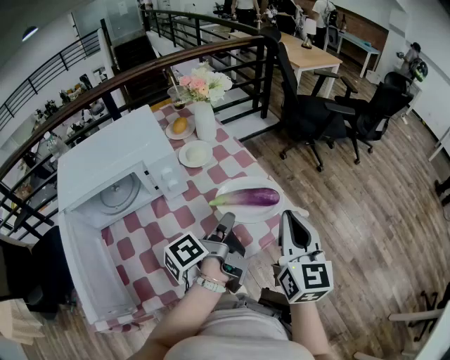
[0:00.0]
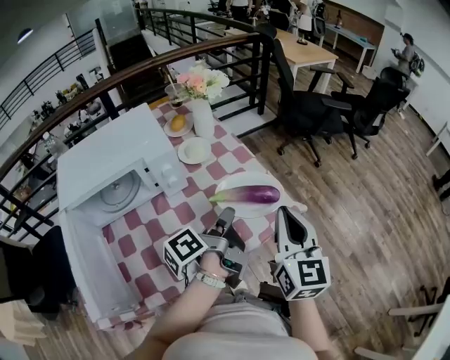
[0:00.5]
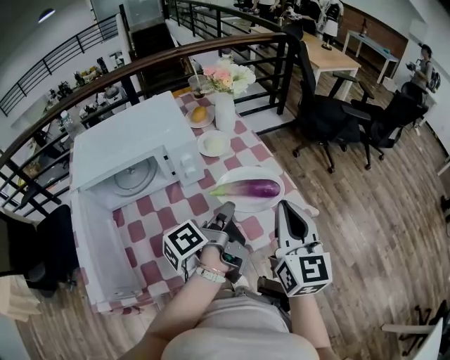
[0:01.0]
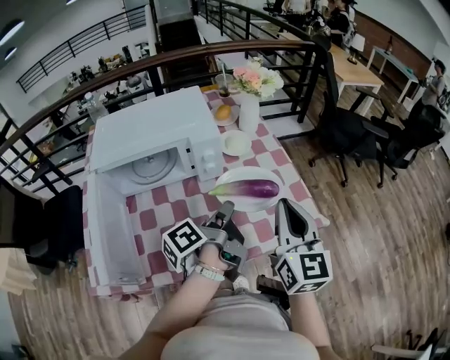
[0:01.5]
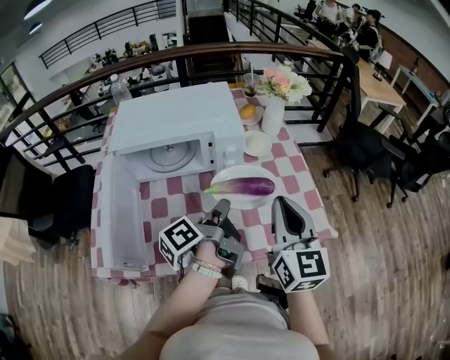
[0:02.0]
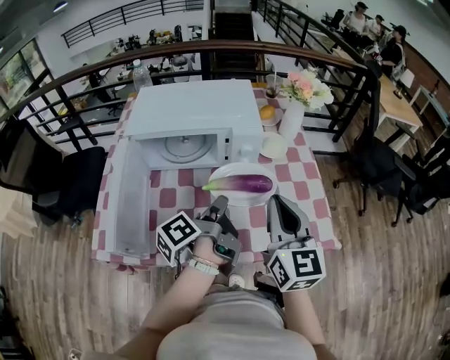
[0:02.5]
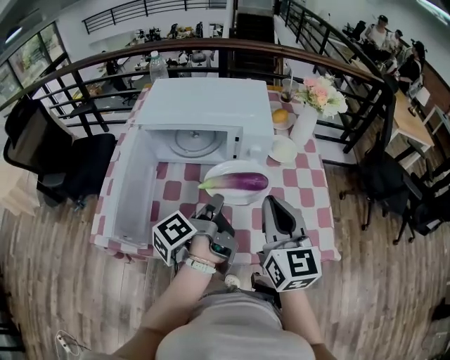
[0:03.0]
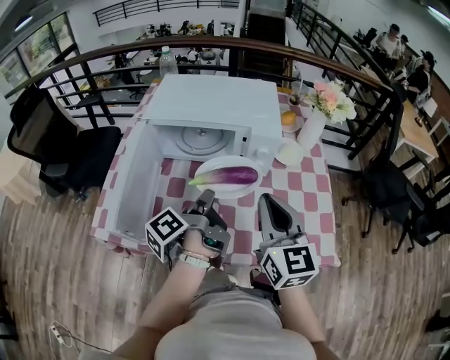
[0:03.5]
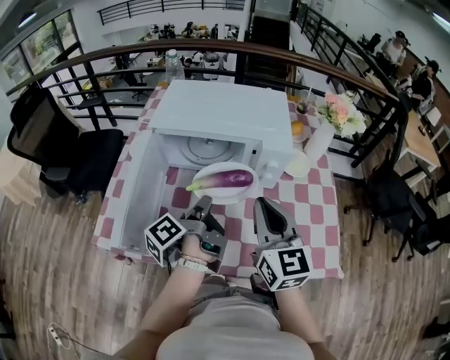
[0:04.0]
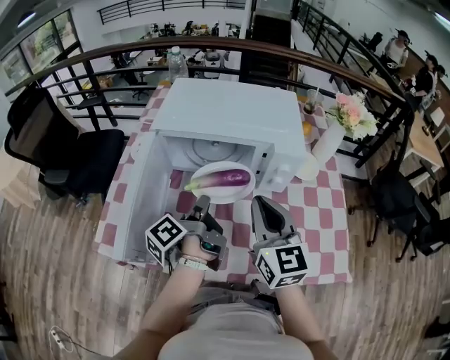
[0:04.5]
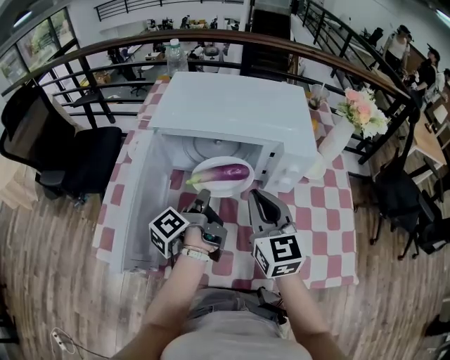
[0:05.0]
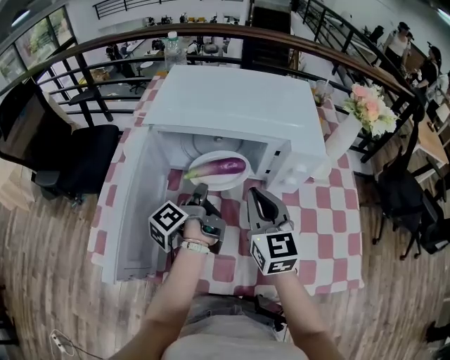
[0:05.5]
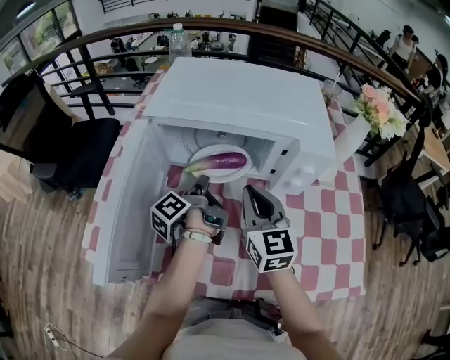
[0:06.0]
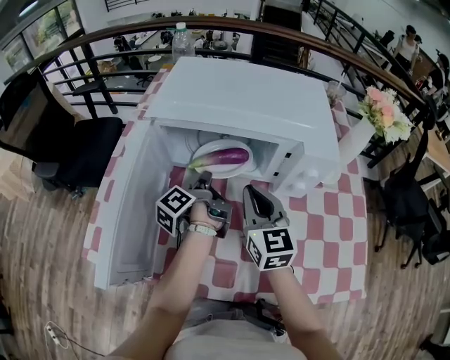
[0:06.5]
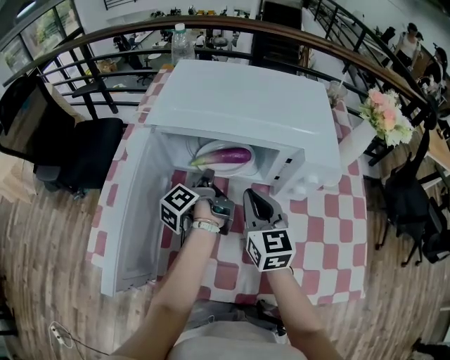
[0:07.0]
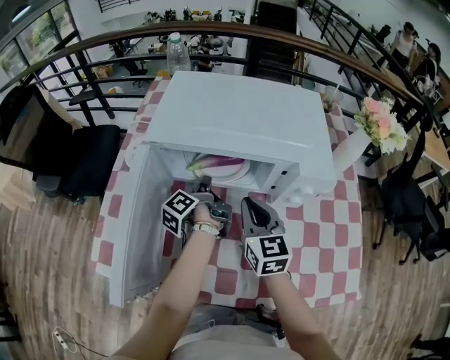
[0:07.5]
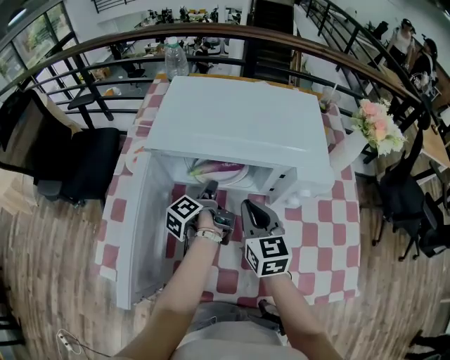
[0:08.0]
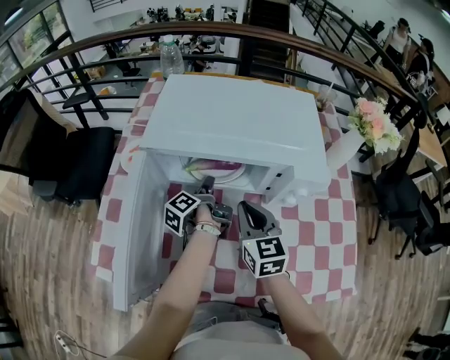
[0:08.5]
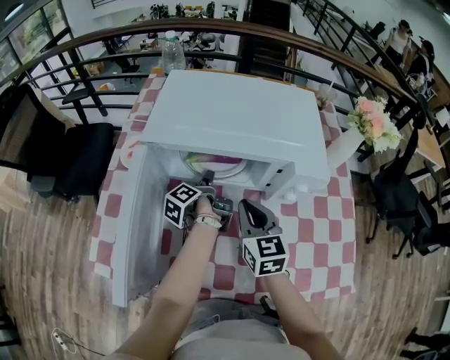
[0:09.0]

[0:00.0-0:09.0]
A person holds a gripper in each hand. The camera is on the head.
0:00.0 to 0:02.0: The right gripper ends up approximately 15 cm from where it was, and rotates approximately 30 degrees.
0:02.0 to 0:04.5: The right gripper ends up approximately 20 cm from where it was, and turns by roughly 20 degrees.
0:04.5 to 0:07.0: The right gripper travels downward by some 15 cm.

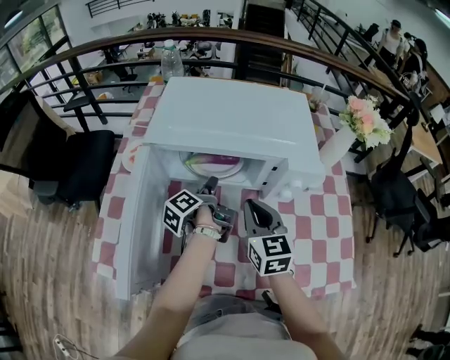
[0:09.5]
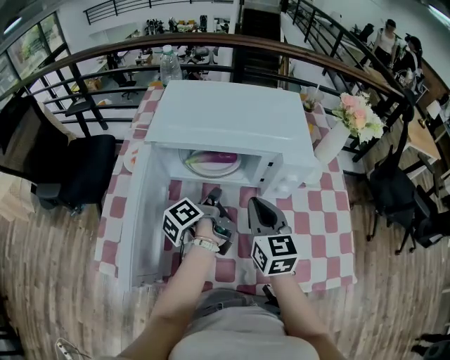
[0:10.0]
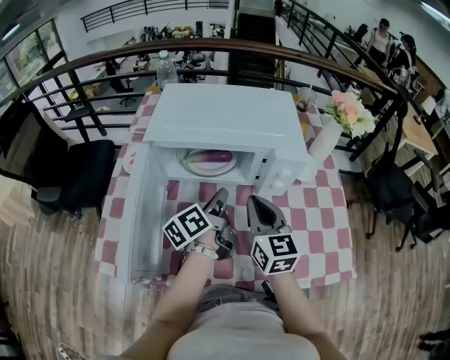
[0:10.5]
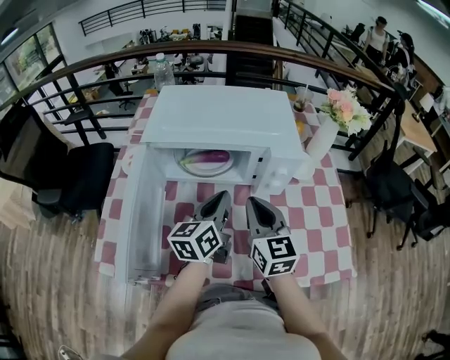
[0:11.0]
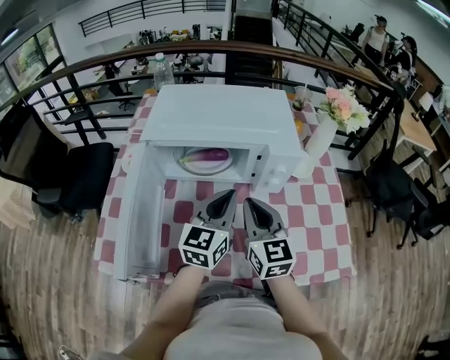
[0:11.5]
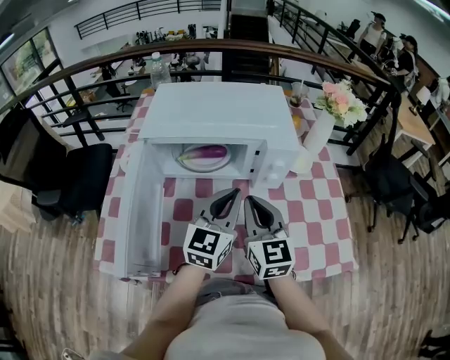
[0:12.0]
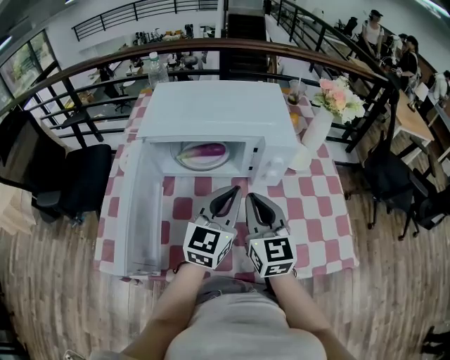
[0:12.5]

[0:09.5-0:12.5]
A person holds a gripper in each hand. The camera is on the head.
0:09.5 to 0:11.0: The right gripper ends up about 5 cm from where it was.

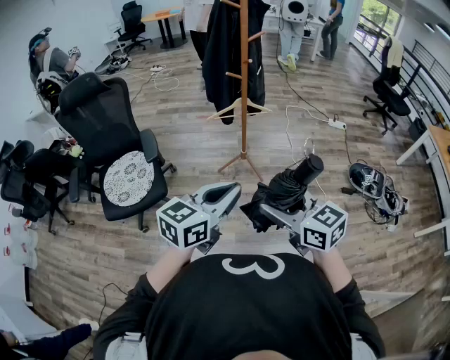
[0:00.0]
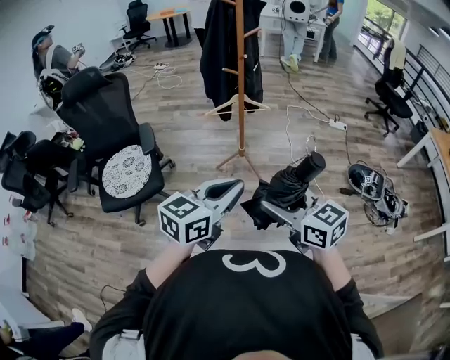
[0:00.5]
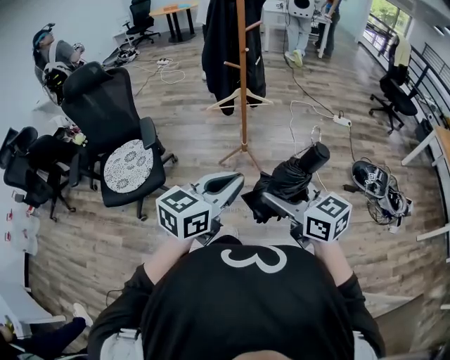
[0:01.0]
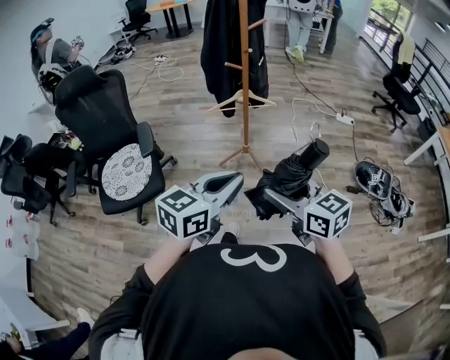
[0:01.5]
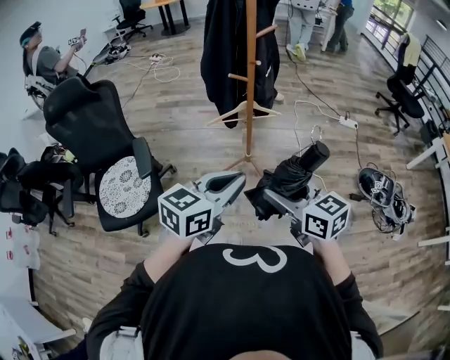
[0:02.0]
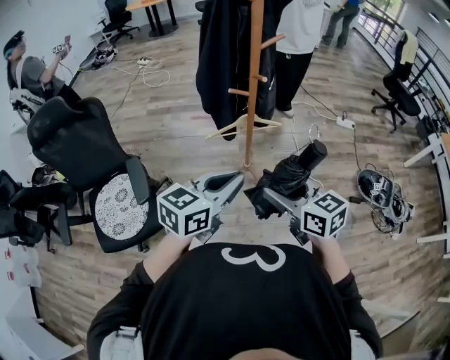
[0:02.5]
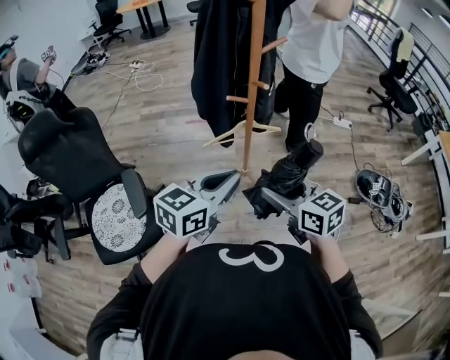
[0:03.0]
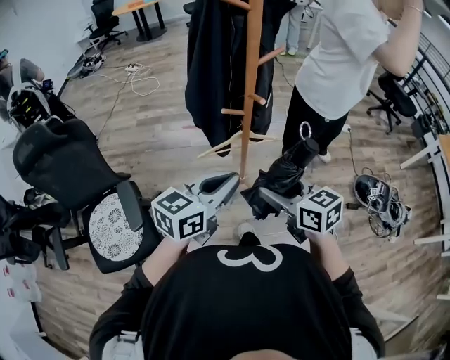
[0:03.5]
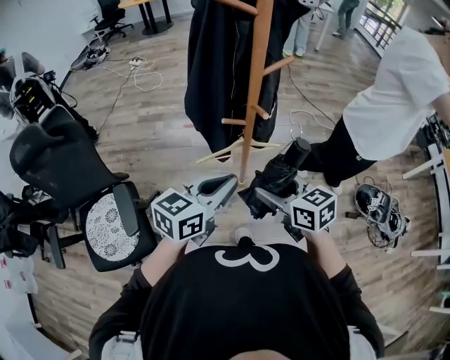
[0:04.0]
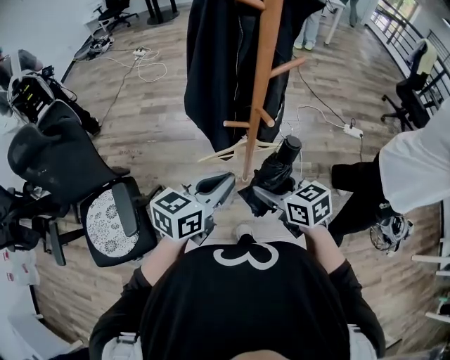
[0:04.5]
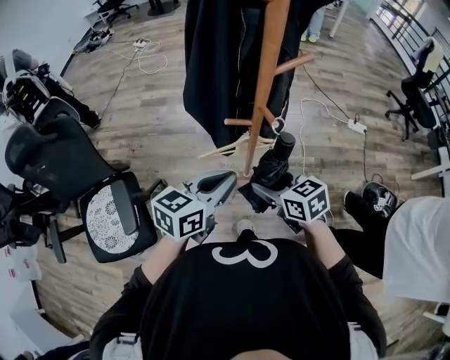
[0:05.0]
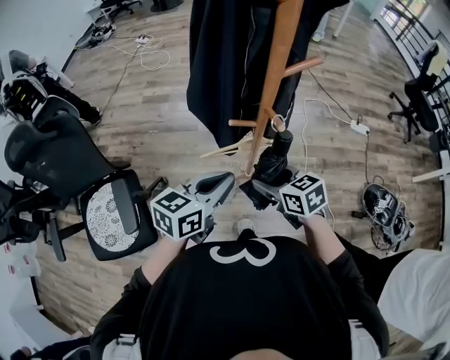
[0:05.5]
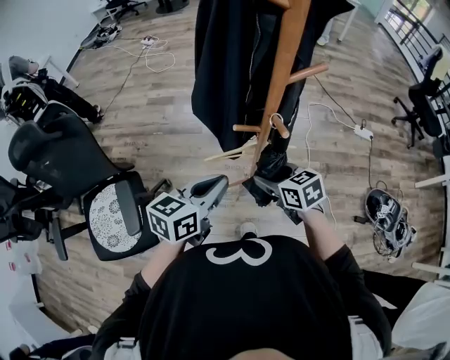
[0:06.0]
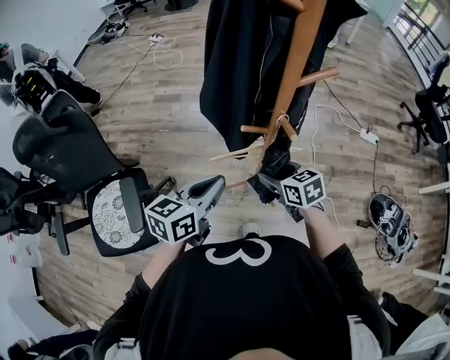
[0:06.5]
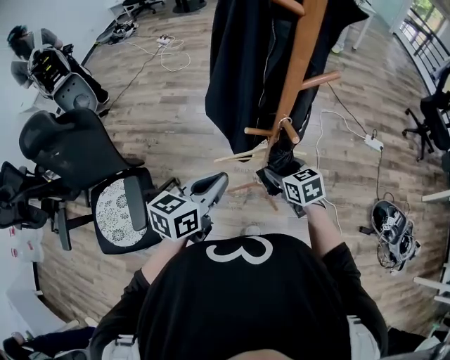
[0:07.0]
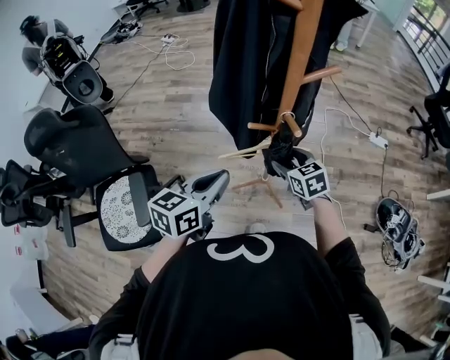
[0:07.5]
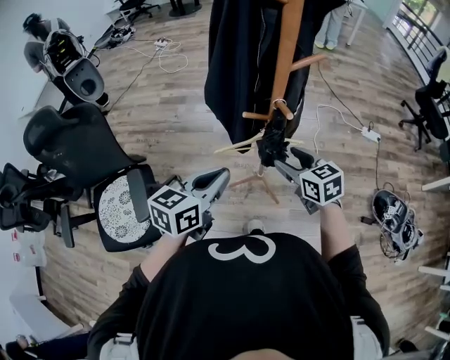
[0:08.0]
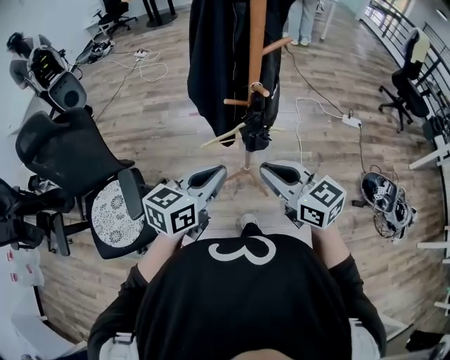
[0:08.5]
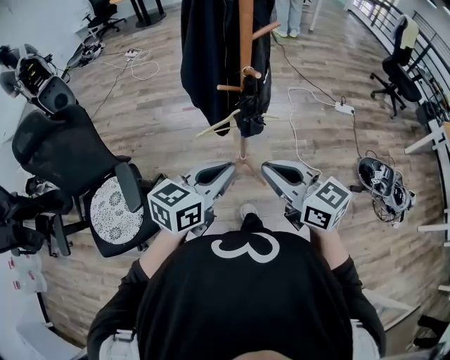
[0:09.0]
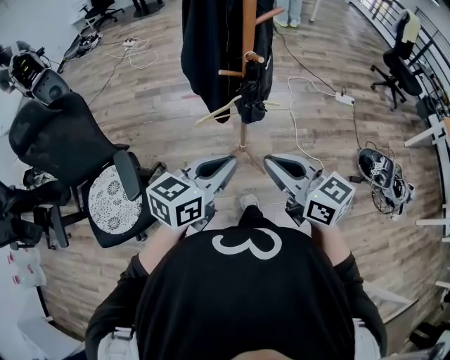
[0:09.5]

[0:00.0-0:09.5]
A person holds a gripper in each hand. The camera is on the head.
0:00.0 to 0:02.0: Both grippers move forward, approximately 20 cm.
0:02.0 to 0:04.0: Both grippers travel together forward, roughly 30 cm.
0:04.0 to 0:05.5: Both grippers move forward and downward, approximately 10 cm.
0:05.5 to 0:07.5: The left gripper ends up approximately 5 cm from where it was; the right gripper is displaced forward by about 10 cm.
0:07.5 to 0:09.5: The left gripper is displaced backward by some 20 cm, while the right gripper heads backward and upward, covering roughly 35 cm, tilts its fingers roughly 30 degrees upward, and closes.

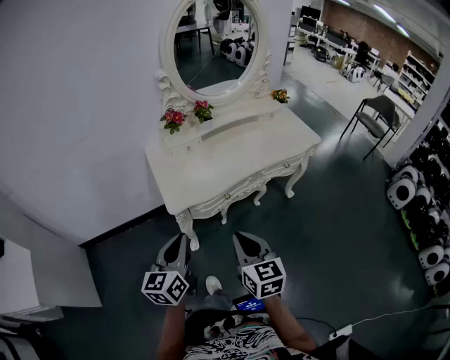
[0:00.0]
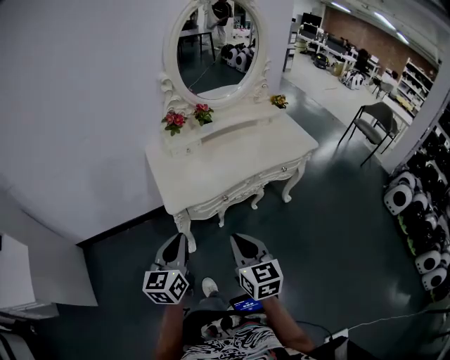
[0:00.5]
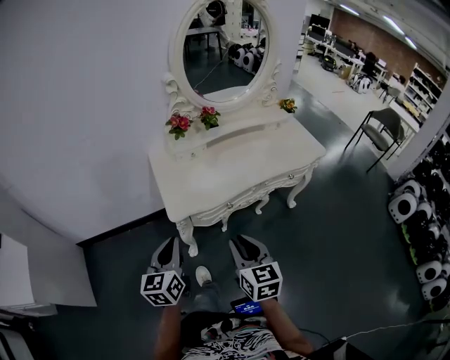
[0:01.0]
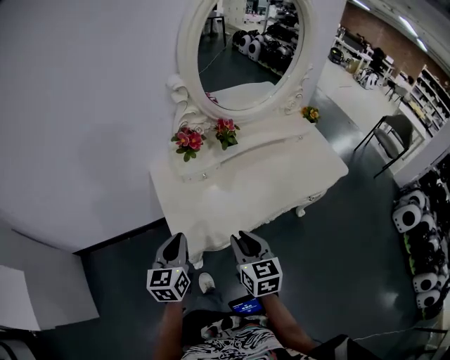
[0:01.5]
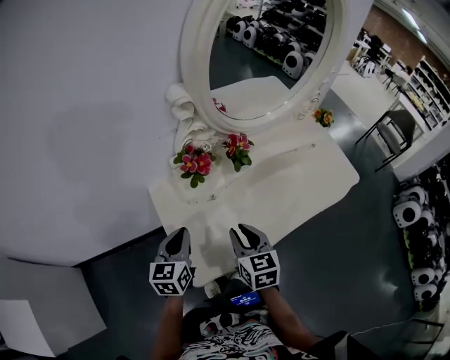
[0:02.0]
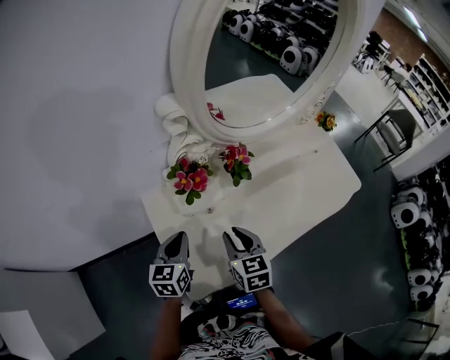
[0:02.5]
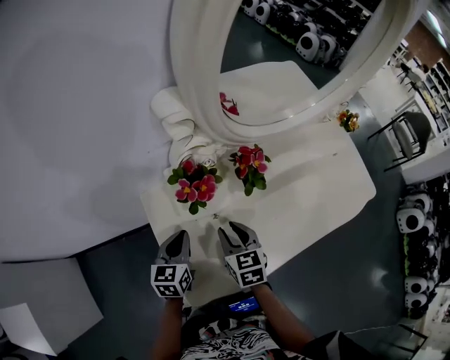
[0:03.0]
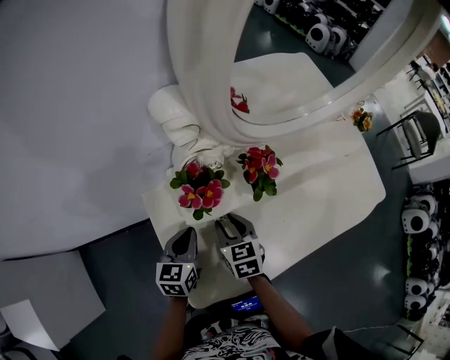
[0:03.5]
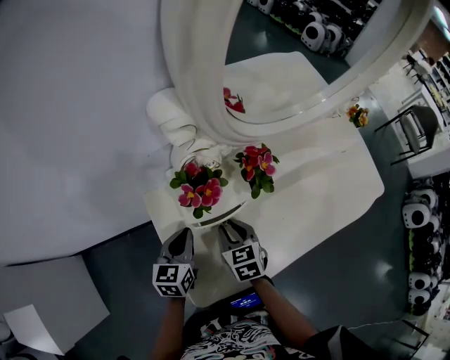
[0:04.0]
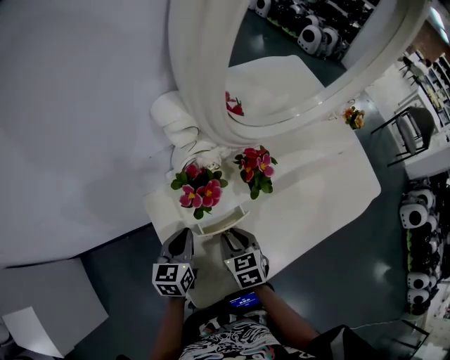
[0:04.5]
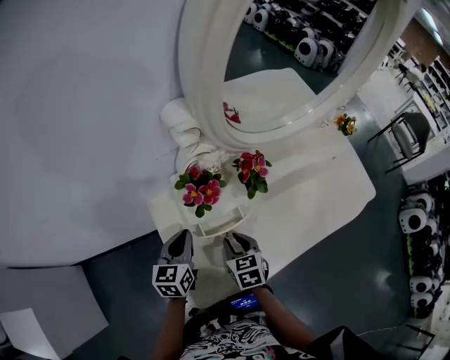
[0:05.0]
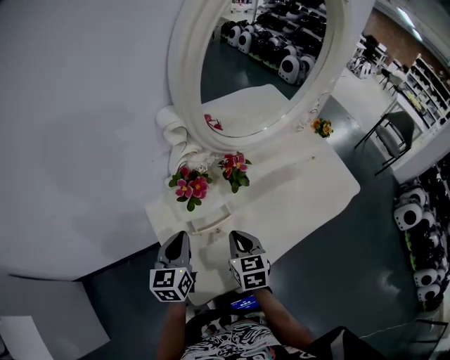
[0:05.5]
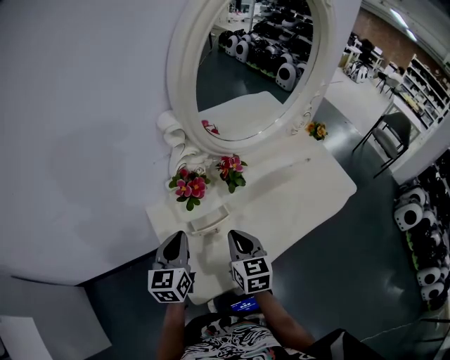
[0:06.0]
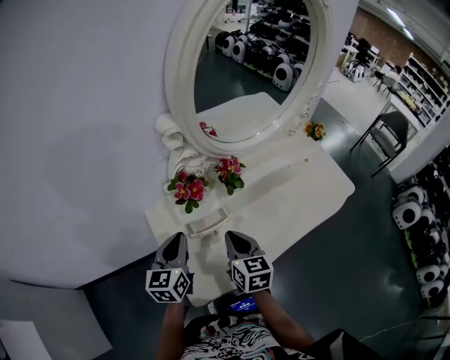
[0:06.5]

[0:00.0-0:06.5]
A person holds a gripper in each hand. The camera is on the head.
0:00.0 to 0:02.0: Both grippers travel together forward, some 35 cm. The right gripper opens.
0:02.0 to 0:04.5: The left gripper moves forward and downward, approximately 15 cm. Meanwhile the right gripper moves downward and forward, some 15 cm.
0:04.5 to 0:06.5: The grippers both shift upward by about 15 cm. The right gripper rotates approximately 30 degrees, and closes up.
